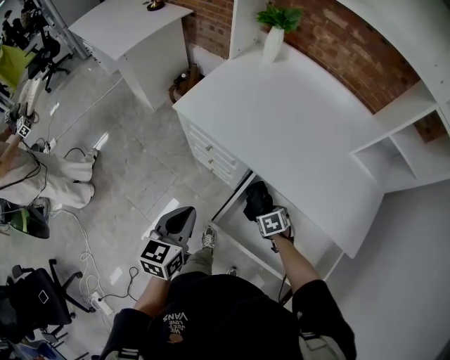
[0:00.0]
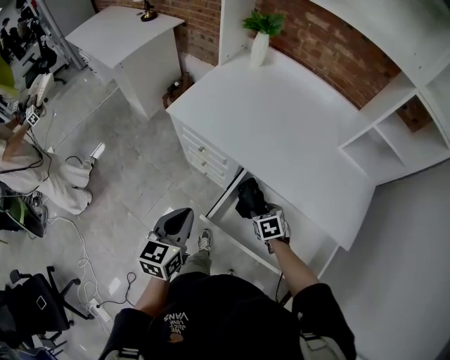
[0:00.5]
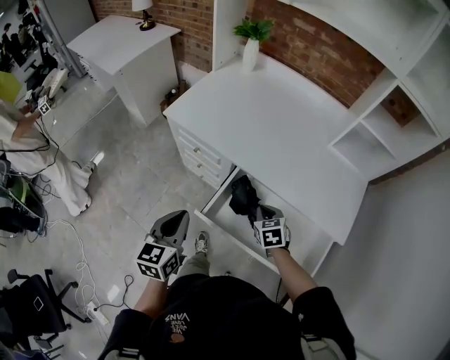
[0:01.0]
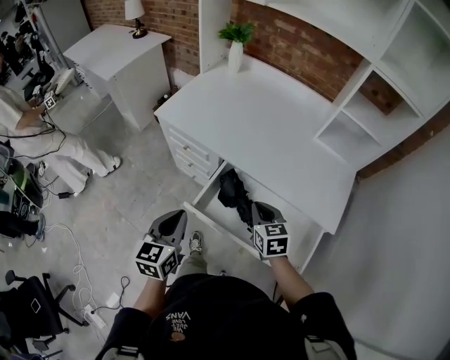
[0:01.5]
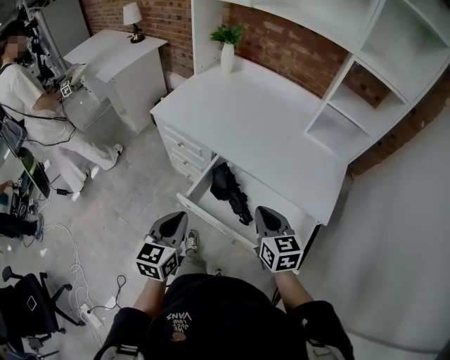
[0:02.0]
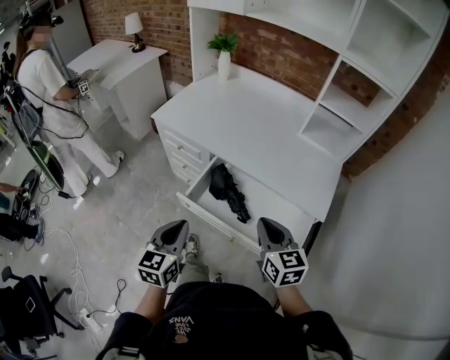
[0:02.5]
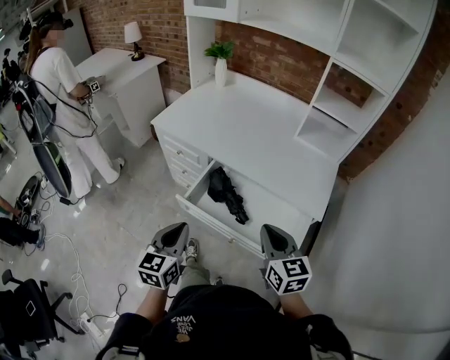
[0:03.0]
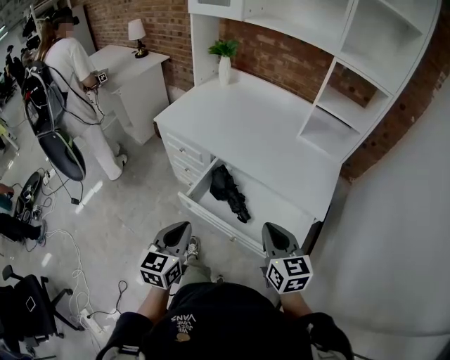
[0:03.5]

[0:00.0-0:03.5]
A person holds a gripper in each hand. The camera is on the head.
0:00.0 to 0:02.0: The left gripper moves backward and to the right, some 20 cm, while the right gripper is displaced upward and backward by about 35 cm, points its fingers roughly 50 degrees further upward, and closes its fingers.
0:02.0 to 0:03.5: The grippers both shift backward by approximately 10 cm.

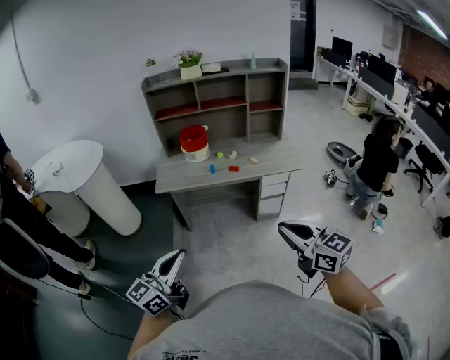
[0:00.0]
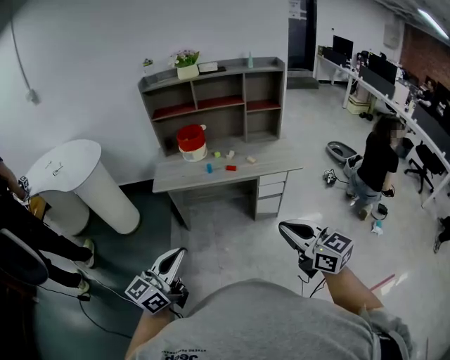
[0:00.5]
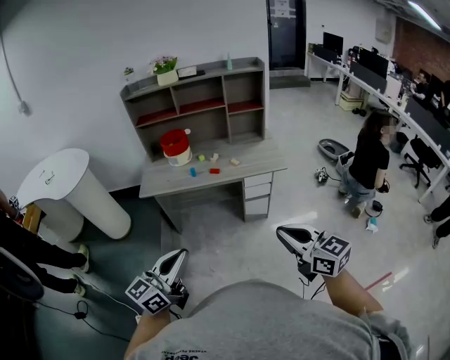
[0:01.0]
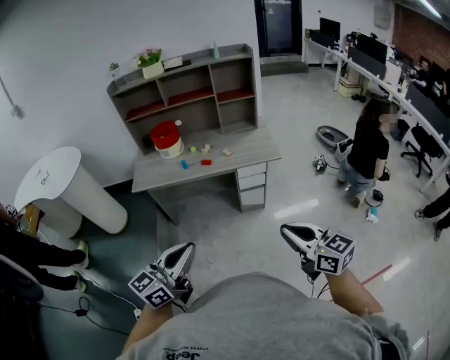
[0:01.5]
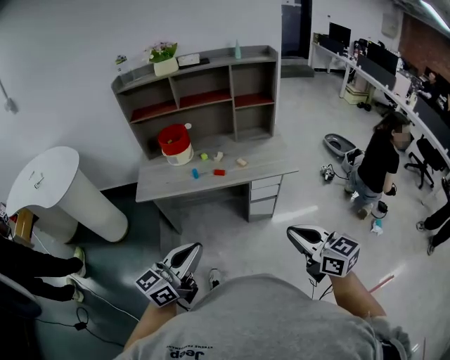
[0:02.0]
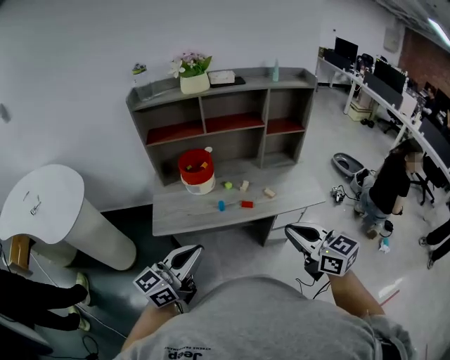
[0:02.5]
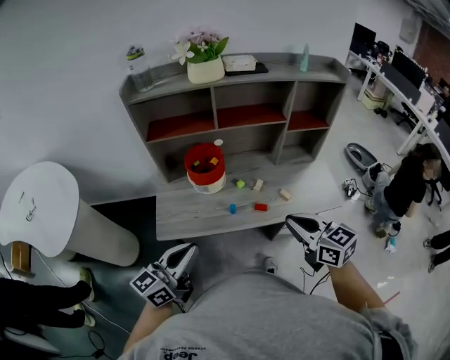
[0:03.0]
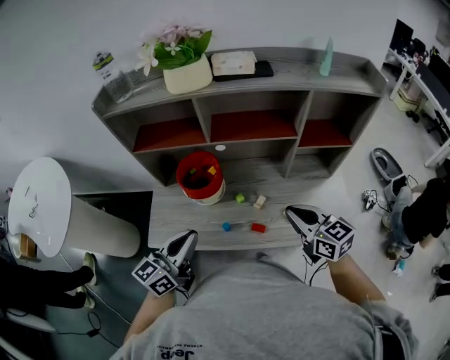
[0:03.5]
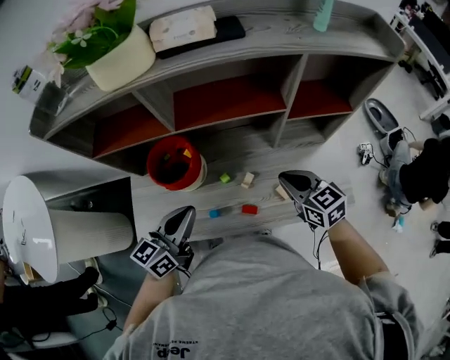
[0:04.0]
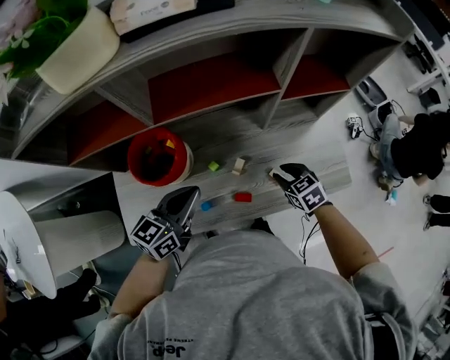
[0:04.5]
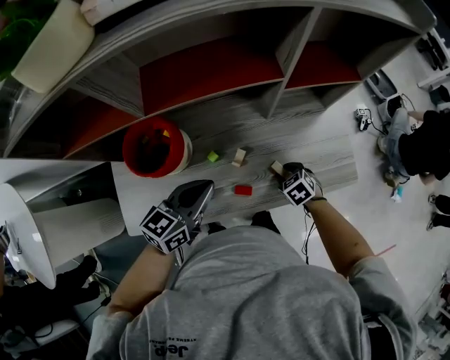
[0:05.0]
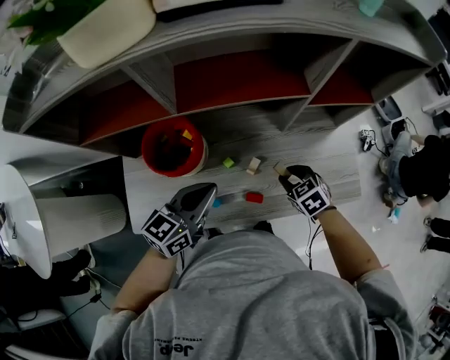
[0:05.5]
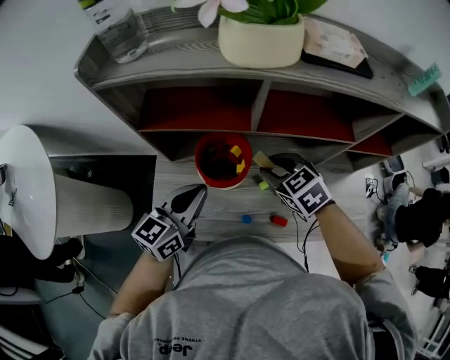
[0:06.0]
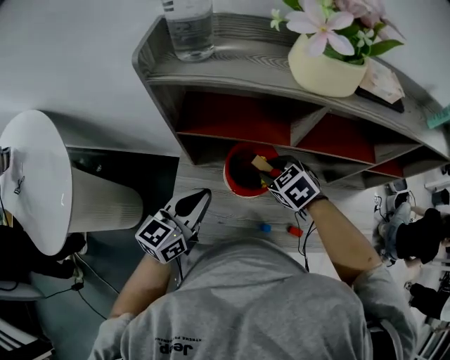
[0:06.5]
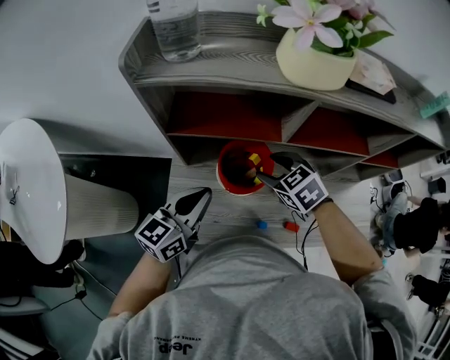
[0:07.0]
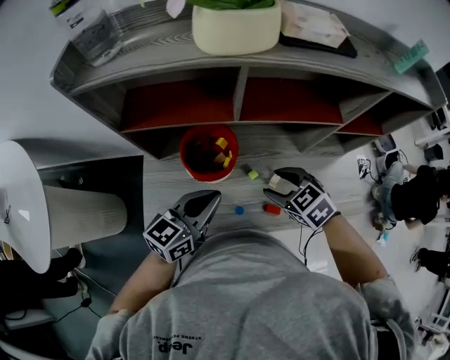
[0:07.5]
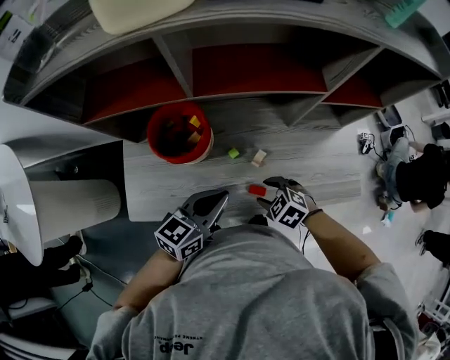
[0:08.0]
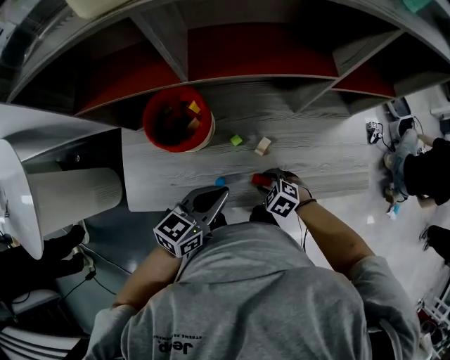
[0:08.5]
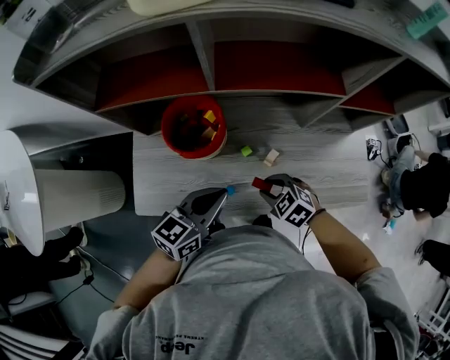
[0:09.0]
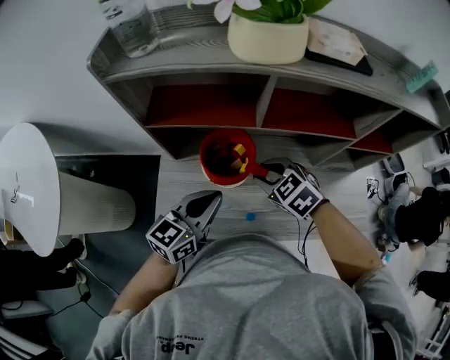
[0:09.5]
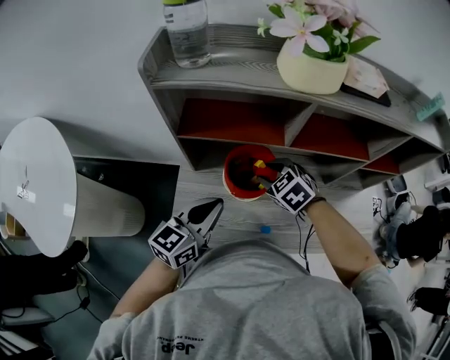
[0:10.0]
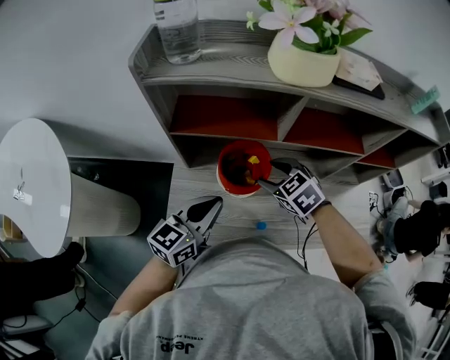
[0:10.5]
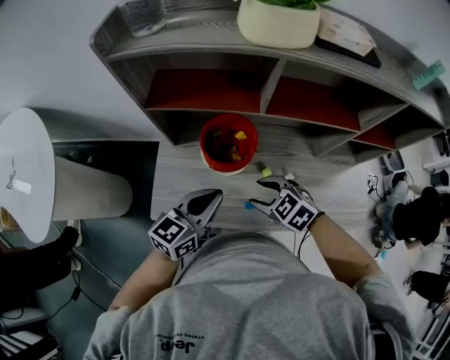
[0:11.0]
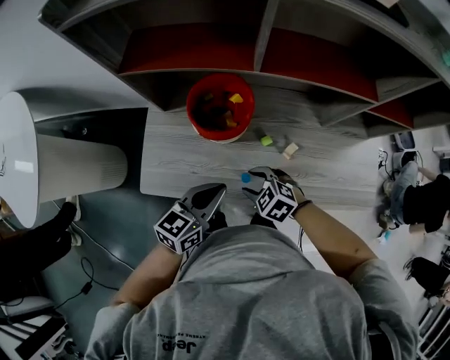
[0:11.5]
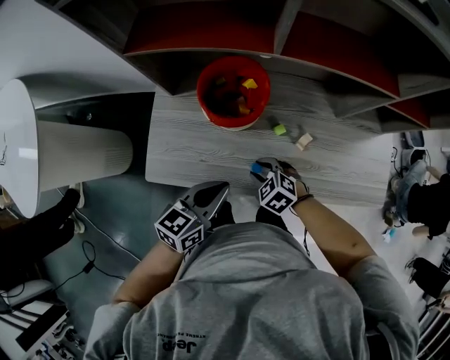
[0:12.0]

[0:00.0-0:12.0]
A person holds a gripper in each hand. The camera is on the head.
0:00.0 to 0:02.0: The right gripper shifts some 15 cm to the right, forward and downward, while the left gripper heads forward and to the right, covering roughly 20 cm.
0:02.0 to 0:04.0: Both grippers are carried forward, approximately 60 cm.
0:04.0 to 0:06.0: The left gripper goes roughly 15 cm to the left, while the right gripper travels to the left by approximately 25 cm, reaches roughly 25 cm downward, then returns, changes its angle by roughly 30 degrees, and opens up.
0:06.0 to 0:08.0: The right gripper is displaced downward, backward and to the right by some 30 cm. The left gripper heads to the right, downward and backward, covering some 20 cm.
0:08.0 to 0:10.0: The left gripper is displaced to the left and upward by about 25 cm. Meanwhile the right gripper travels forward, to the left and upward by approximately 30 cm.
0:10.0 to 0:12.0: The left gripper shifts some 20 cm downward, backward and to the right, while the right gripper travels downward and backward by roughly 30 cm.

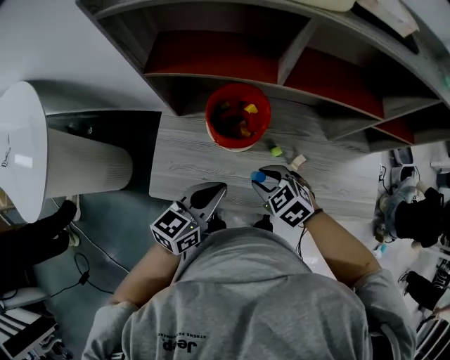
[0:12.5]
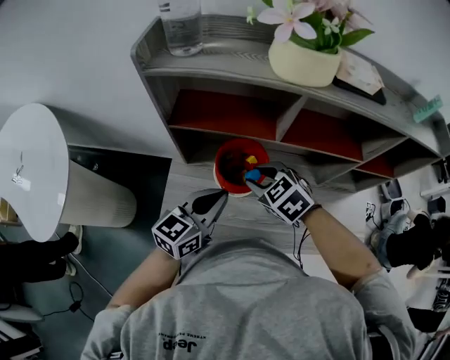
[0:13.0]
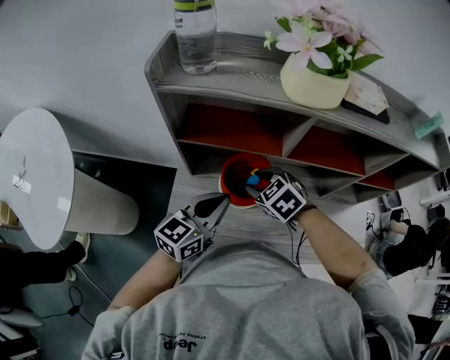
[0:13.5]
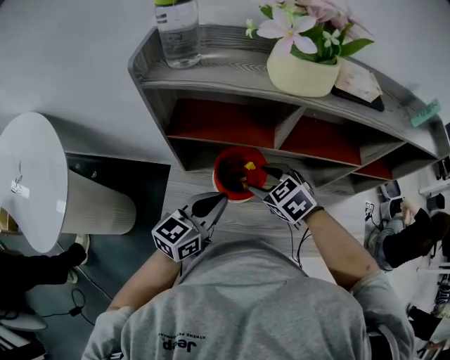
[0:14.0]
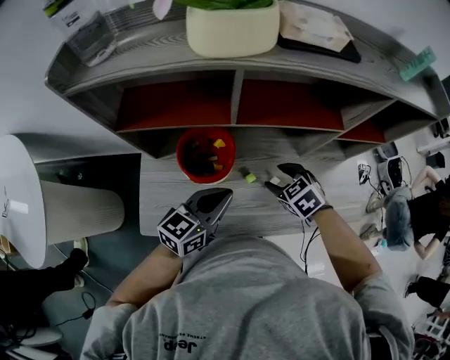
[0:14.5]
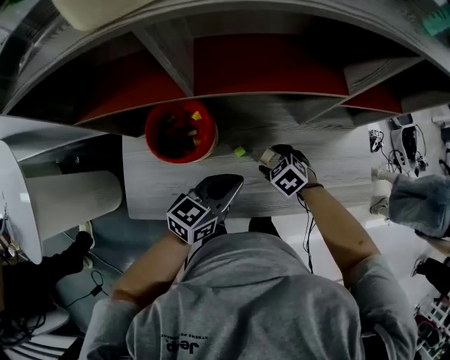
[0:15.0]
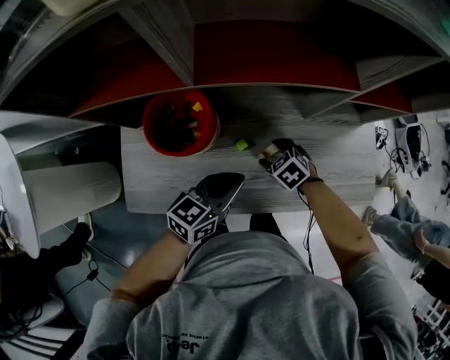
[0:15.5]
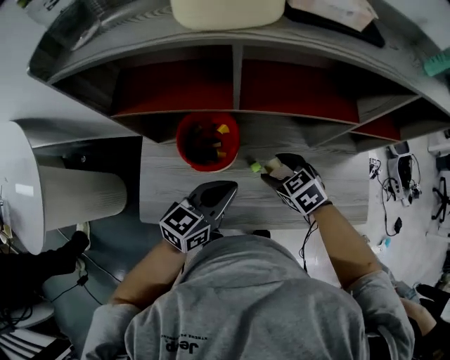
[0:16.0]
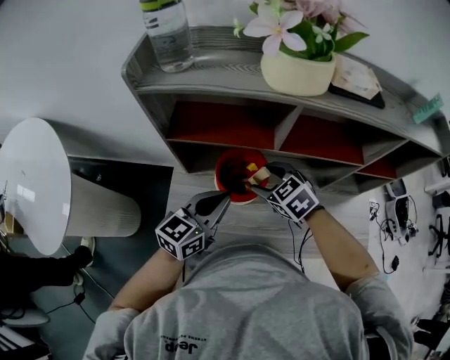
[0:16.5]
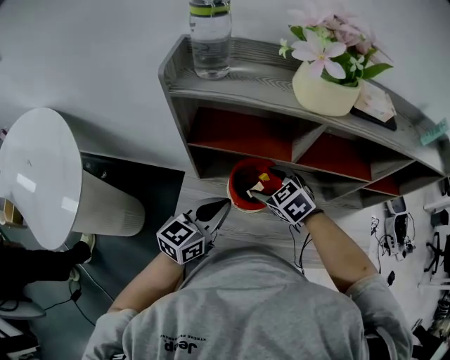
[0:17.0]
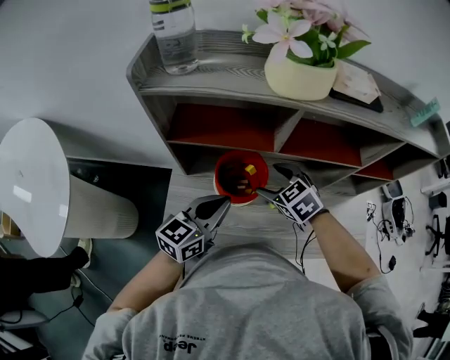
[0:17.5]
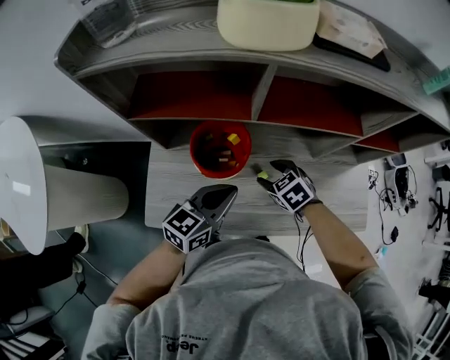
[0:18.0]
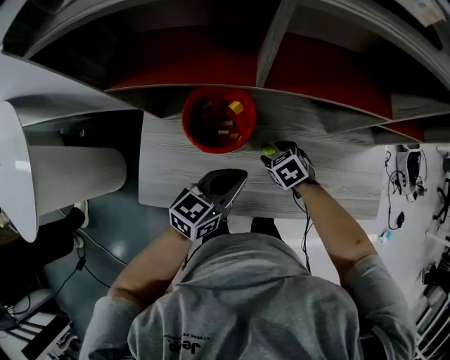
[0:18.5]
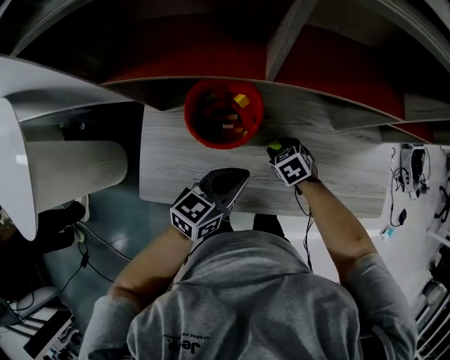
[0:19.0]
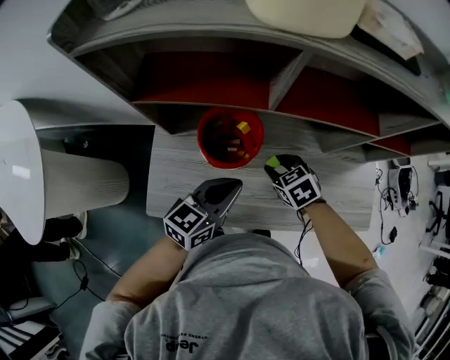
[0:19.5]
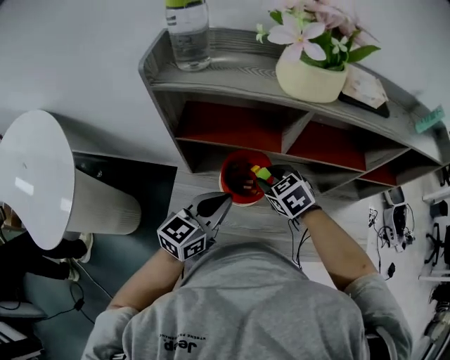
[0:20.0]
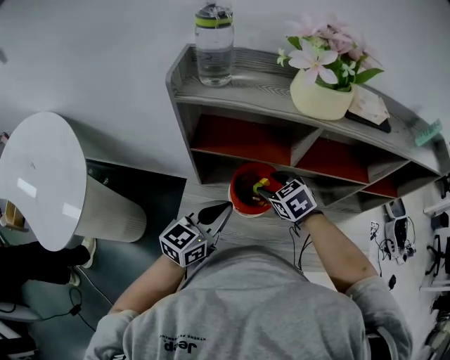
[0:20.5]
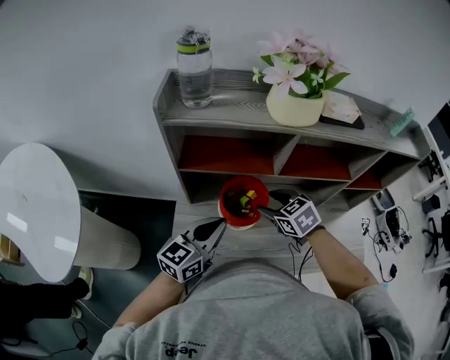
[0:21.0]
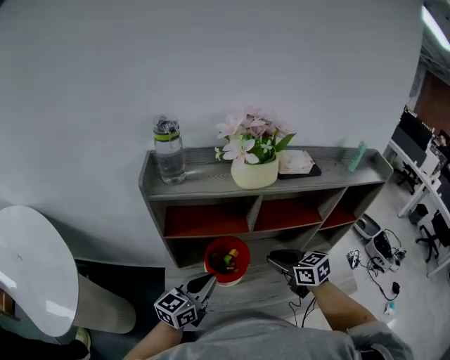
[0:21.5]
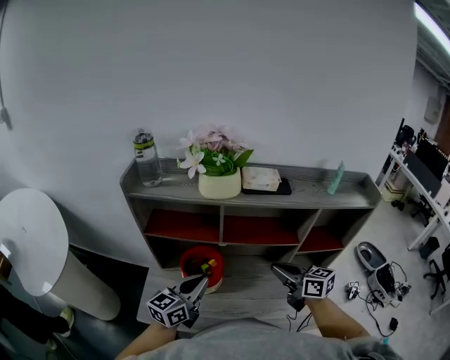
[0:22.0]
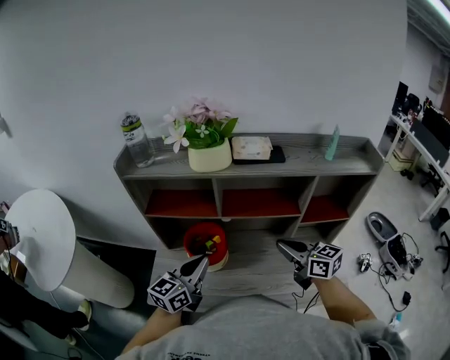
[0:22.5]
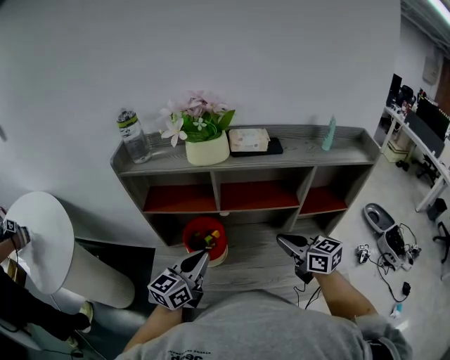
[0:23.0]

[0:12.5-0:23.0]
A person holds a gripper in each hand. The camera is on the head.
0:12.5 to 0:14.5: The two grippers go approximately 15 cm to the right and forward.
0:14.5 to 0:16.5: The left gripper travels to the left and upward by about 10 cm, while the right gripper is displaced to the left and upward by some 20 cm.
0:16.5 to 0:19.0: The left gripper shifts some 20 cm downward and to the right; the right gripper goes approximately 25 cm downward, rotates approximately 20 degrees, and closes its fingers.
0:19.0 to 0:21.0: The right gripper goes approximately 30 cm upward; the left gripper is displaced upward and to the left by about 25 cm, and rotates about 20 degrees.
0:21.0 to 0:23.0: The left gripper is displaced to the right by roughly 10 cm. The right gripper heads to the right and upward, covering approximately 25 cm, points its fingers some 40 degrees further upward, and closes.
